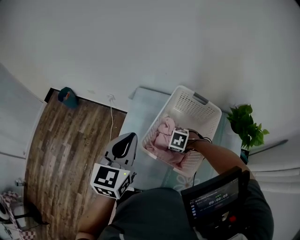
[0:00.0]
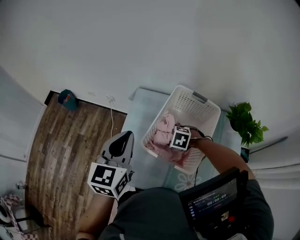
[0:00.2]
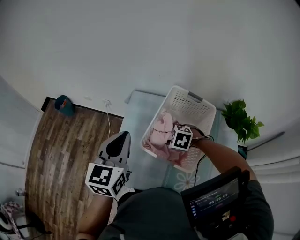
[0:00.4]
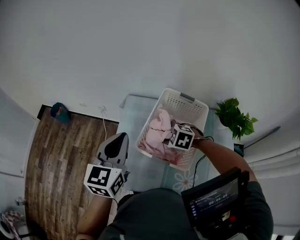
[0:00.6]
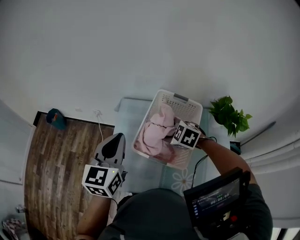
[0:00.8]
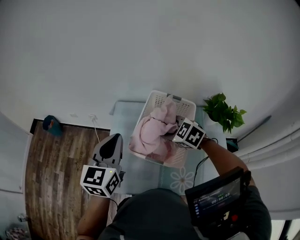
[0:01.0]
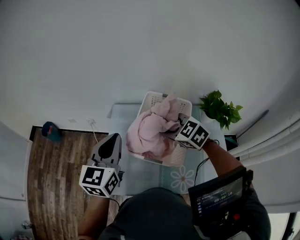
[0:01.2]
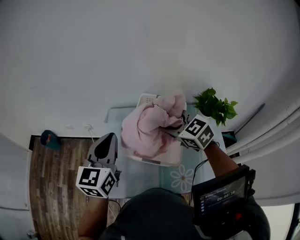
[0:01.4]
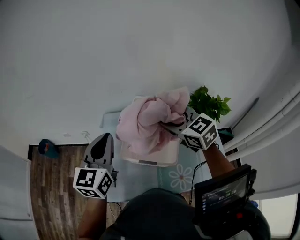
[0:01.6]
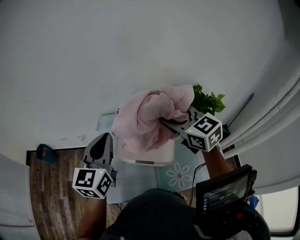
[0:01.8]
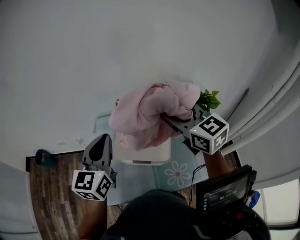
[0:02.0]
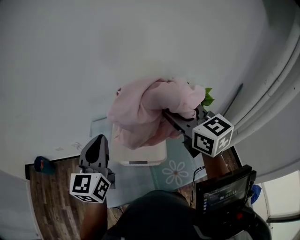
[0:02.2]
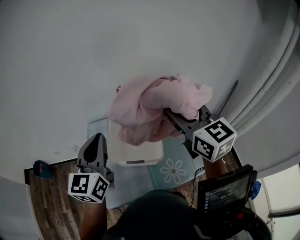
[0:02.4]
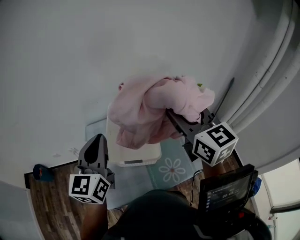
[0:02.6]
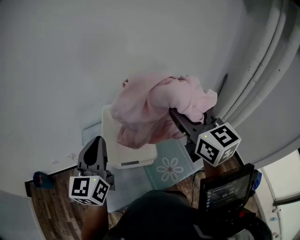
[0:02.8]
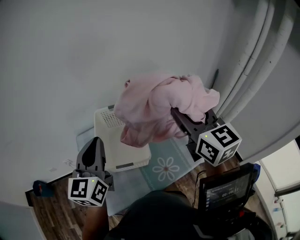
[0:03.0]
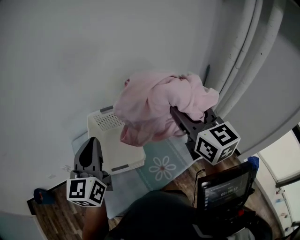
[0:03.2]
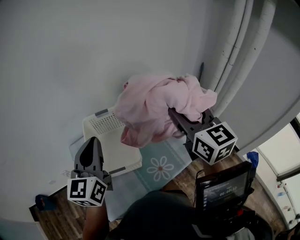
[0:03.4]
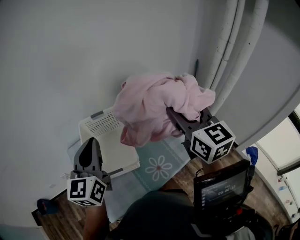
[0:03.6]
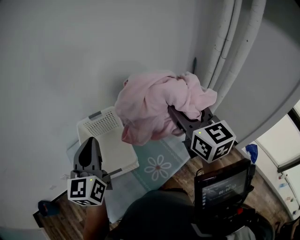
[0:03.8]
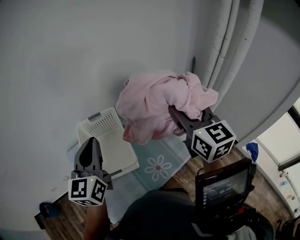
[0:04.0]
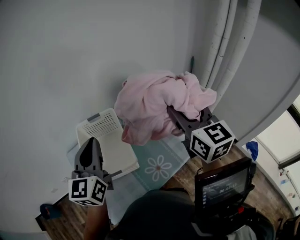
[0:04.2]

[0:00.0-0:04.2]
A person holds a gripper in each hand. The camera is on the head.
0:00.0 to 0:01.4: The left gripper shifts roughly 5 cm upward, while the right gripper moves upward, about 30 cm, and points its fingers approximately 50 degrees further upward.
0:01.4 to 0:02.8: The right gripper ends up about 30 cm from where it was, and points its fingers some 30 degrees further upward. The left gripper moves some 15 cm.
0:02.8 to 0:04.2: The left gripper goes roughly 5 cm forward; the right gripper heads to the right, covering some 5 cm, and rotates some 20 degrees.

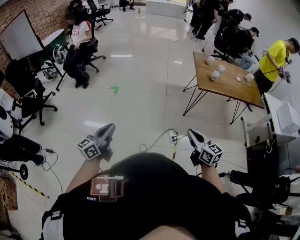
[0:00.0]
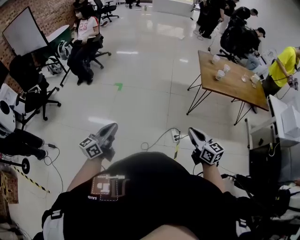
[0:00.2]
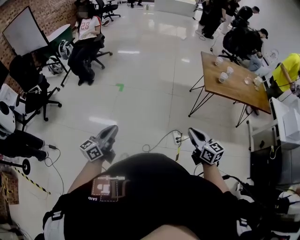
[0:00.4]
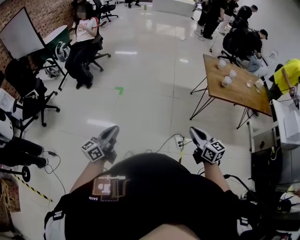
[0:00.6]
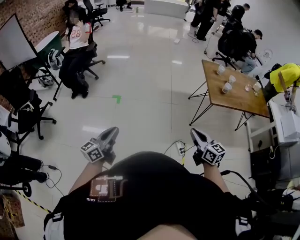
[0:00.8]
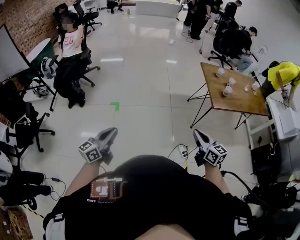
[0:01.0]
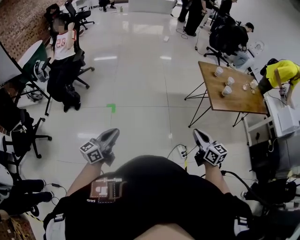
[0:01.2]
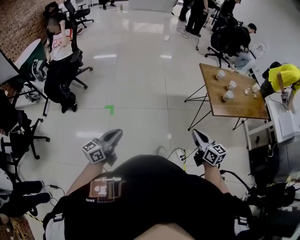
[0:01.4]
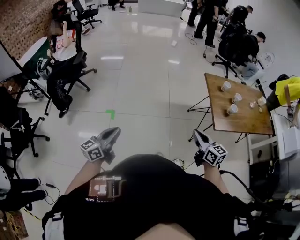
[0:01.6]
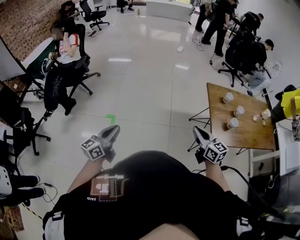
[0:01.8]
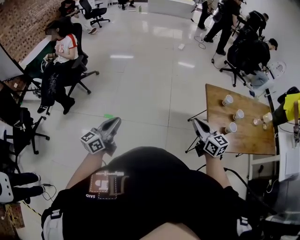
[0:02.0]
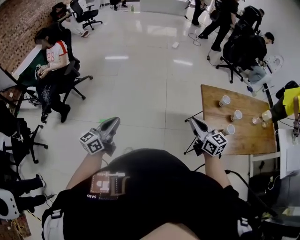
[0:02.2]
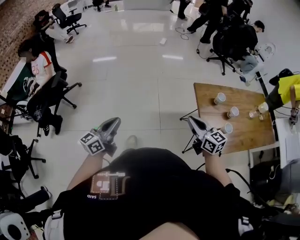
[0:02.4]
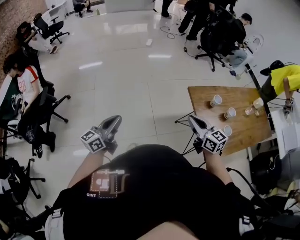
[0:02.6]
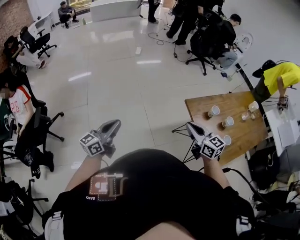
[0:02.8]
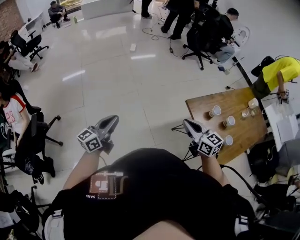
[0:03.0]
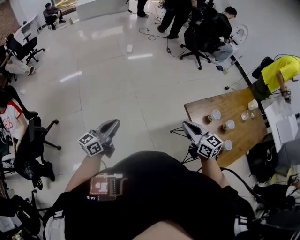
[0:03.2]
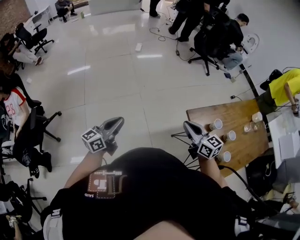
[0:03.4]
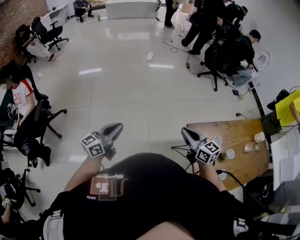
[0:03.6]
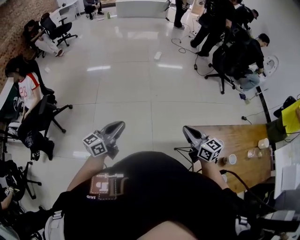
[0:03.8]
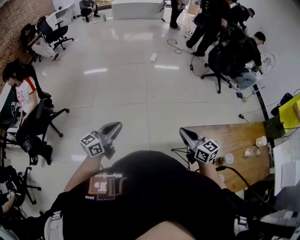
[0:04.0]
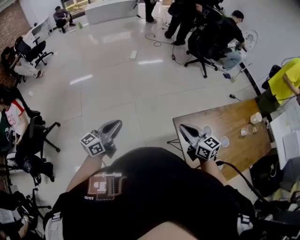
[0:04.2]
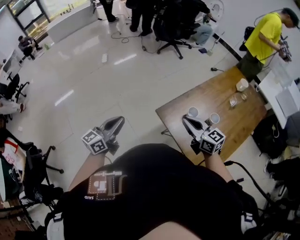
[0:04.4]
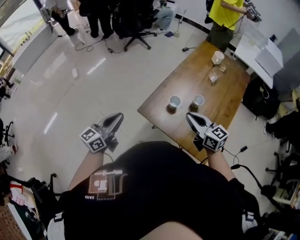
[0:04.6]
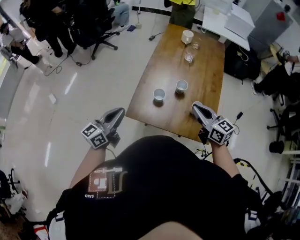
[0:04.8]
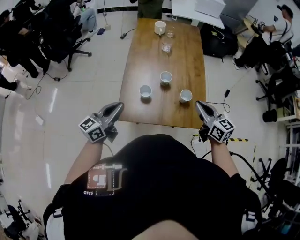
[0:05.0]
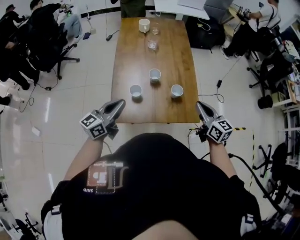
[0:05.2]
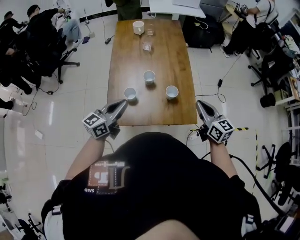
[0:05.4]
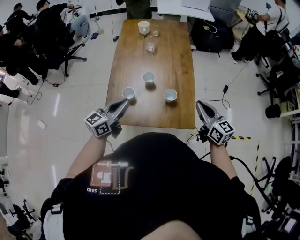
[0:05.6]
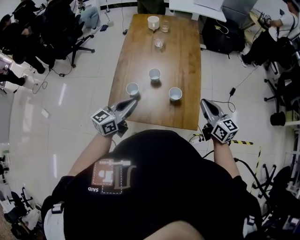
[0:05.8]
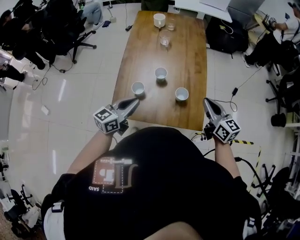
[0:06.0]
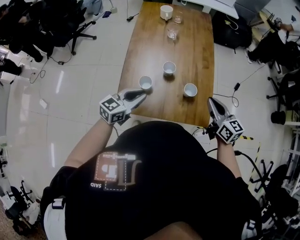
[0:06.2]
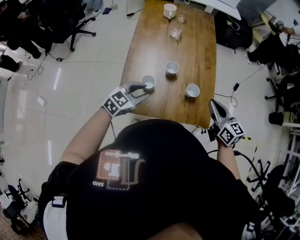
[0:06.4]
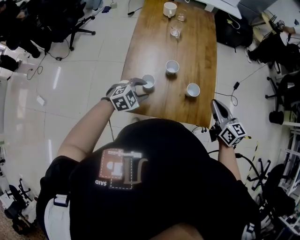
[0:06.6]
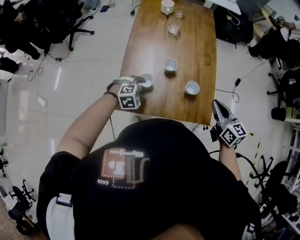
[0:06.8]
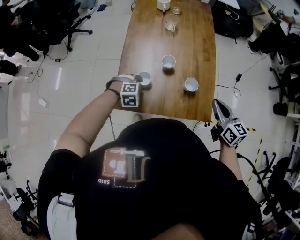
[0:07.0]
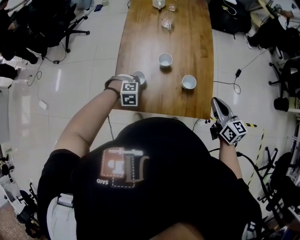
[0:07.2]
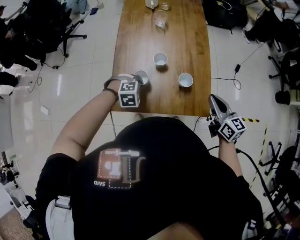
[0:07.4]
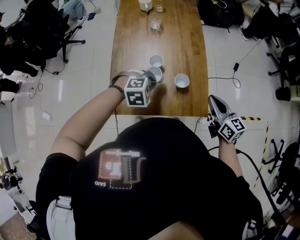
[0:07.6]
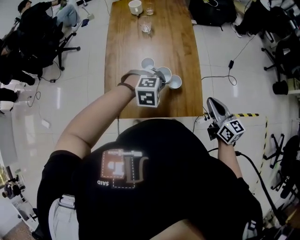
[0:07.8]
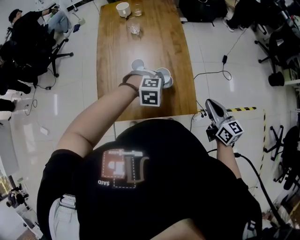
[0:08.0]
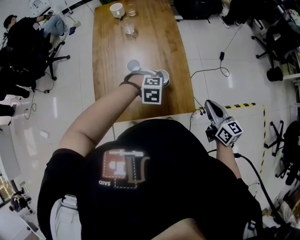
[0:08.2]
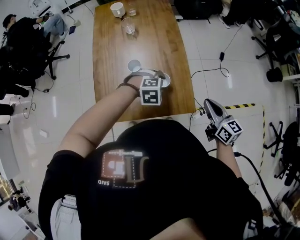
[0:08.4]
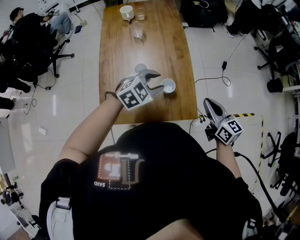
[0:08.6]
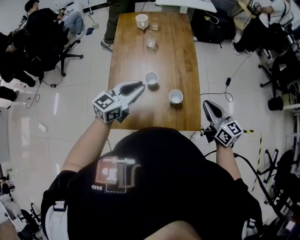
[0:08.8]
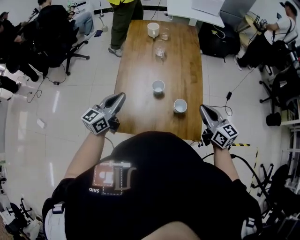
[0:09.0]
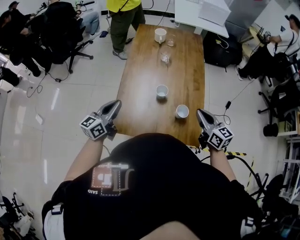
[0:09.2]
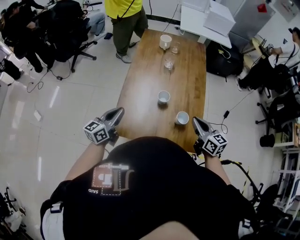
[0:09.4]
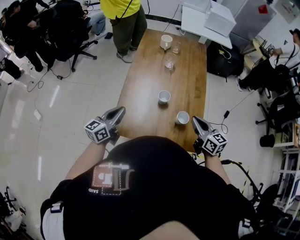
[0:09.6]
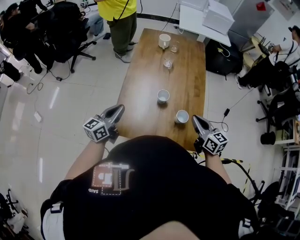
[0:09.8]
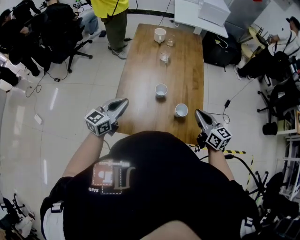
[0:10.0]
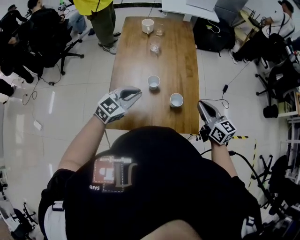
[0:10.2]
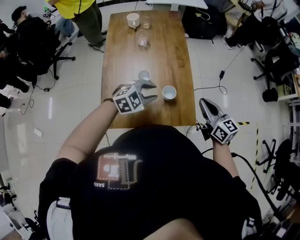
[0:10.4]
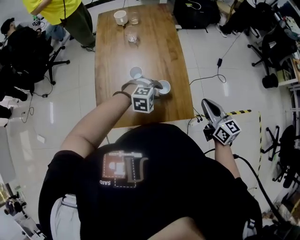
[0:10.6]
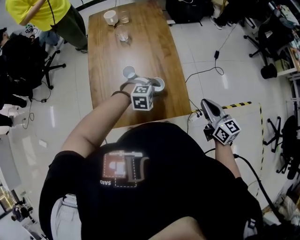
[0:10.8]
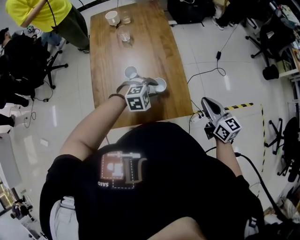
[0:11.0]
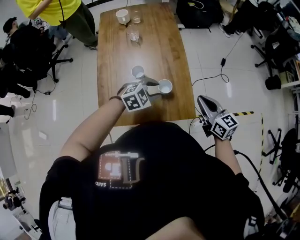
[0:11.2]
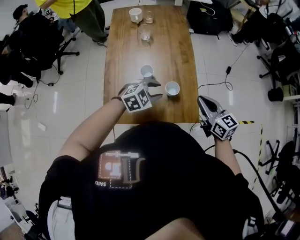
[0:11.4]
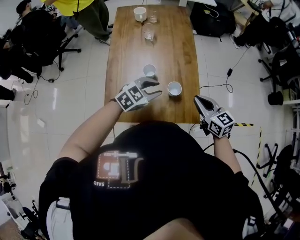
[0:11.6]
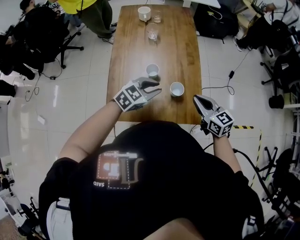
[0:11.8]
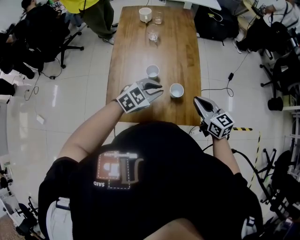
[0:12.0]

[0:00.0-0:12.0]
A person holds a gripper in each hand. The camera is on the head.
0:00.0 to 0:01.6: Both grippers move forward, some 40 cm.
0:01.6 to 0:03.0: Both grippers are carried forward, about 50 cm.
0:03.0 to 0:04.4: The right gripper ends up some 20 cm from where it was; the left gripper ends up approximately 30 cm from where it was.
0:04.4 to 0:06.0: The right gripper changes place by approximately 35 cm, and rotates roughly 60 degrees, while the left gripper moves roughly 35 cm, and changes its angle by about 60 degrees.
0:06.0 to 0:07.6: The left gripper points its fingers some 50 degrees further downward, and opens, then closes once more. Meanwhile the right gripper changes place by approximately 5 cm.
0:07.6 to 0:09.0: The right gripper changes place by roughly 10 cm, while the left gripper shifts by roughly 20 cm, tips its fingers upward by some 60 degrees, and opens and closes again.
0:09.0 to 0:10.4: The right gripper changes place by roughly 5 cm, while the left gripper moves approximately 20 cm, angles its fingers downward, by about 40 degrees, and opens up.
0:10.4 to 0:12.0: The left gripper reaches some 10 cm to the right, then returns.

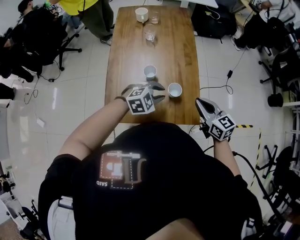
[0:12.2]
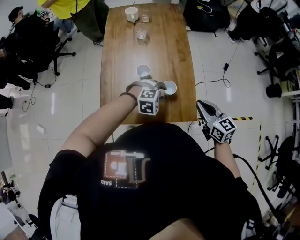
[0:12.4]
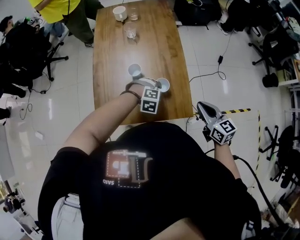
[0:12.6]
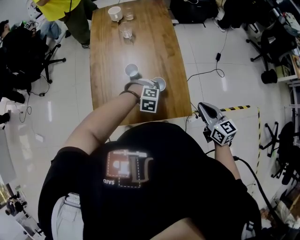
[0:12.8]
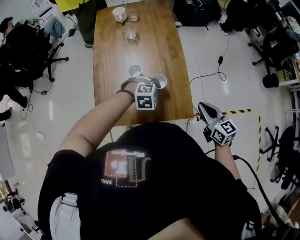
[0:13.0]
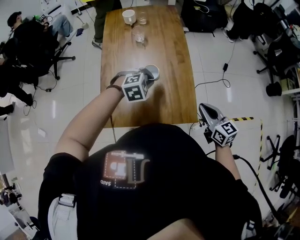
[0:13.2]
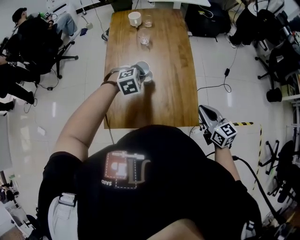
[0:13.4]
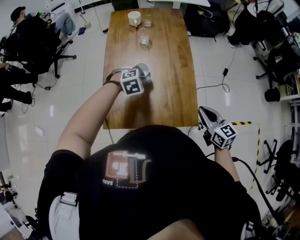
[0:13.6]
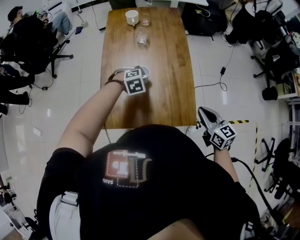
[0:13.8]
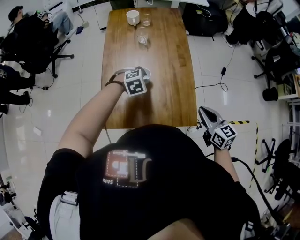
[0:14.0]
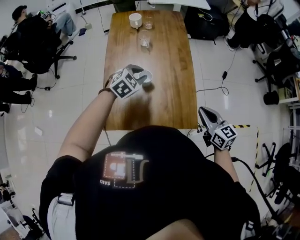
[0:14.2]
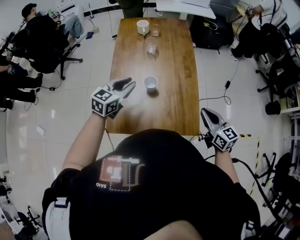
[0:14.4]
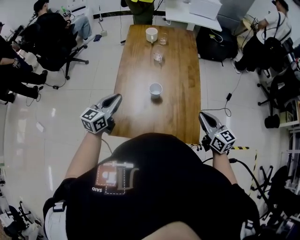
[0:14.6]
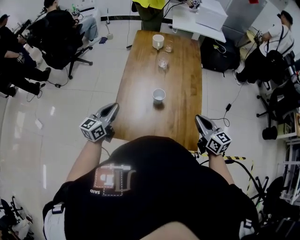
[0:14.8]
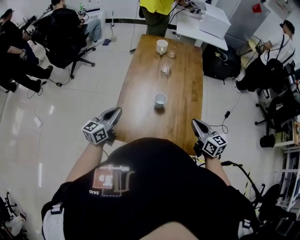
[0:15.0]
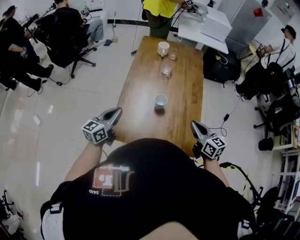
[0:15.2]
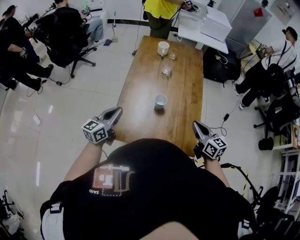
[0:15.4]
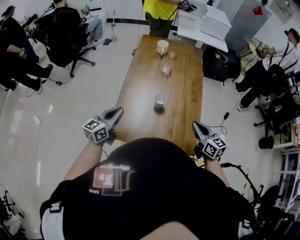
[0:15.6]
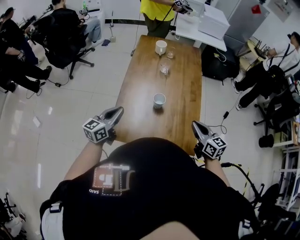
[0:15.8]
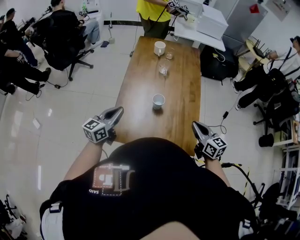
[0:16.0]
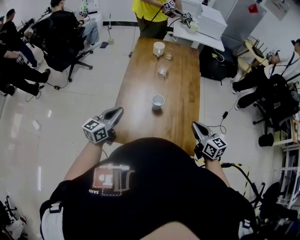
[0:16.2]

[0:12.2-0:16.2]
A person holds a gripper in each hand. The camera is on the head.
0:12.2 to 0:13.6: The left gripper heads to the left and forward, covering about 15 cm, and rotates about 20 degrees.
0:13.6 to 0:14.8: The right gripper moves to the left and forward, about 10 cm. Meanwhile the left gripper is displaced to the left, upward and backward by some 25 cm, and angles its fingers upward, by approximately 60 degrees.
0:14.8 to 0:16.2: The grippers stay close to where they were, moving slightly.

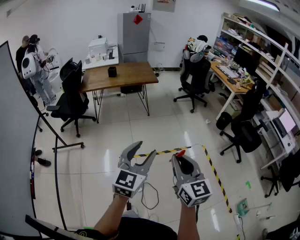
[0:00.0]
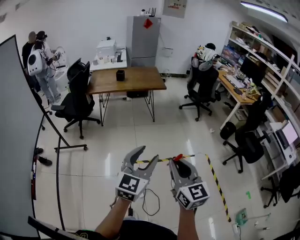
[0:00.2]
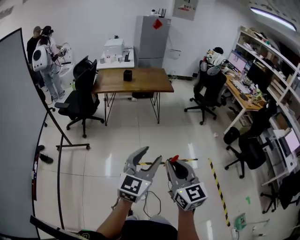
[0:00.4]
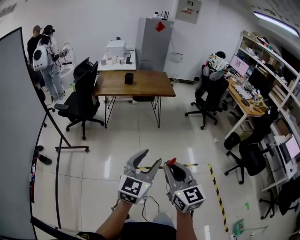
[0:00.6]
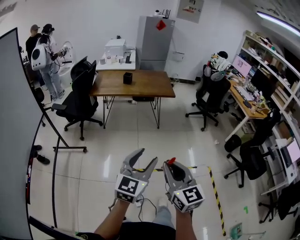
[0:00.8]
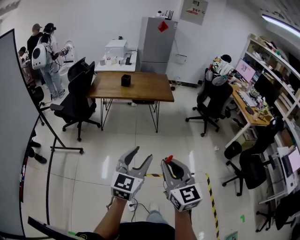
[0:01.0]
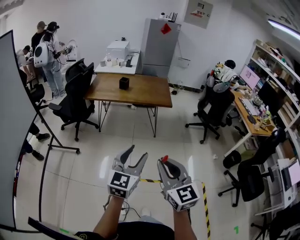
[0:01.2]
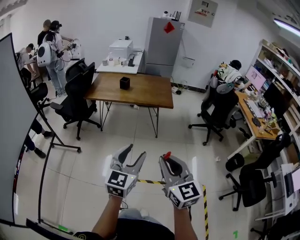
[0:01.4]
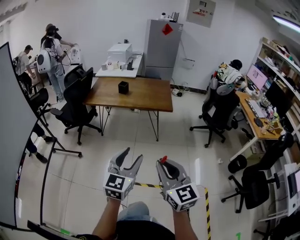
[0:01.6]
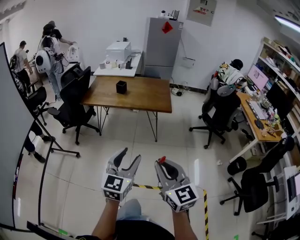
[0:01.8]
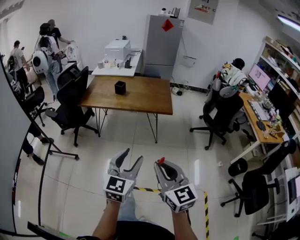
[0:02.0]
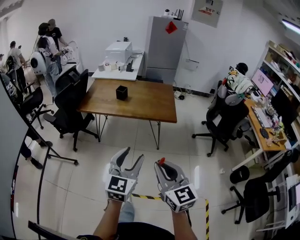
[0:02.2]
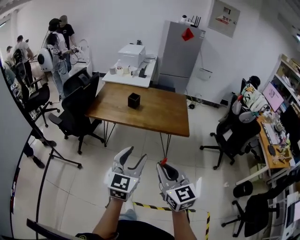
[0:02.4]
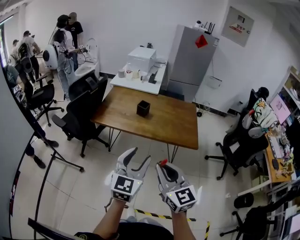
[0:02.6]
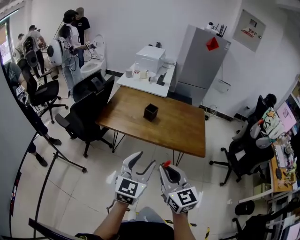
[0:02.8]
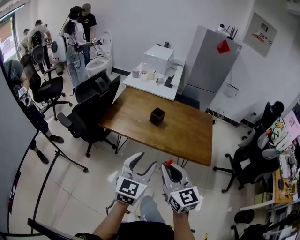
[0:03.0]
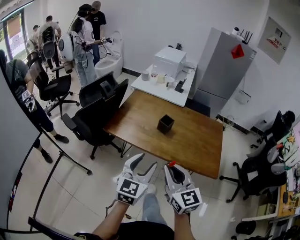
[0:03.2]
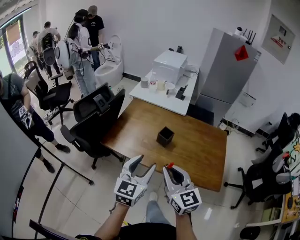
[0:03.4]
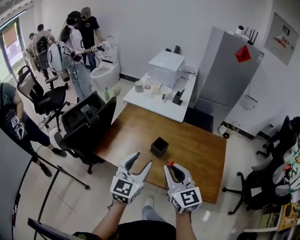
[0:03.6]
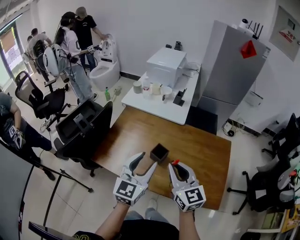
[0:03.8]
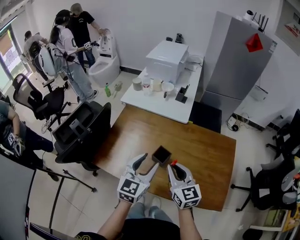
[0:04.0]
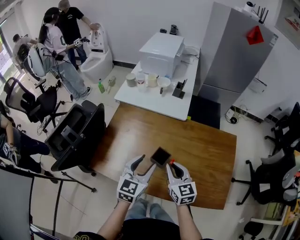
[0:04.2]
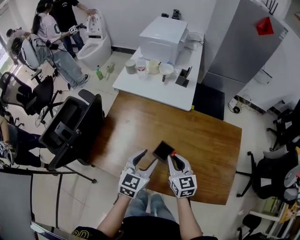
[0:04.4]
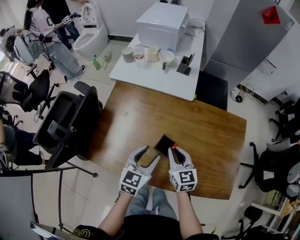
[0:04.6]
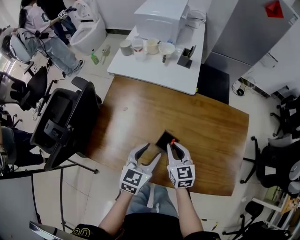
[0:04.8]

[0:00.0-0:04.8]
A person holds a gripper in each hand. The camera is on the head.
0:00.0 to 0:01.6: Both grippers travel together forward, roughly 35 cm. The left gripper rotates about 20 degrees. The right gripper rotates some 20 degrees.
0:01.6 to 0:03.2: The two grippers travel together, forward, approximately 60 cm.
0:03.2 to 0:04.8: Both grippers travel together forward and downward, some 50 cm. The right gripper changes its angle by some 20 degrees, while the left gripper changes its angle by approximately 20 degrees.
